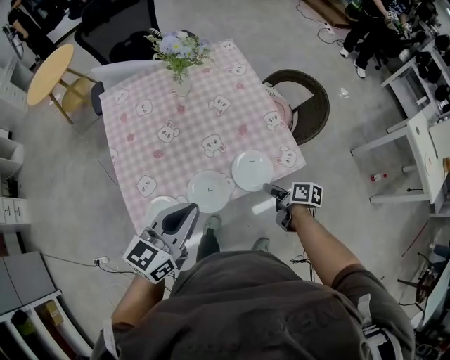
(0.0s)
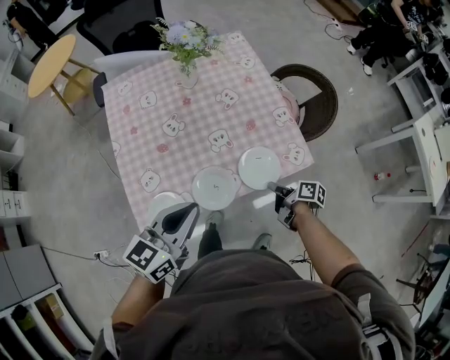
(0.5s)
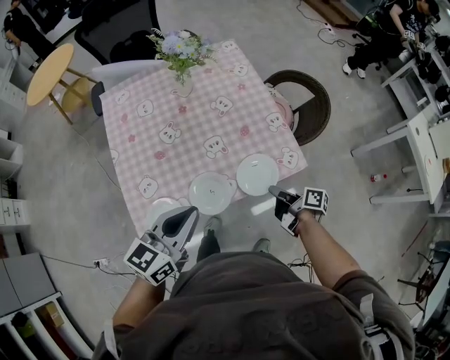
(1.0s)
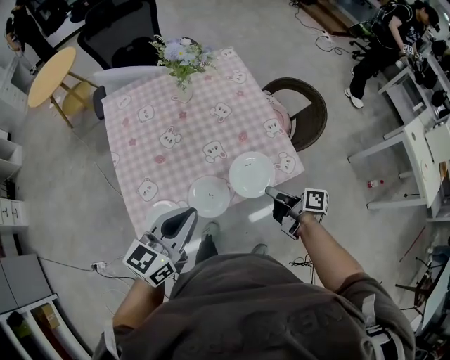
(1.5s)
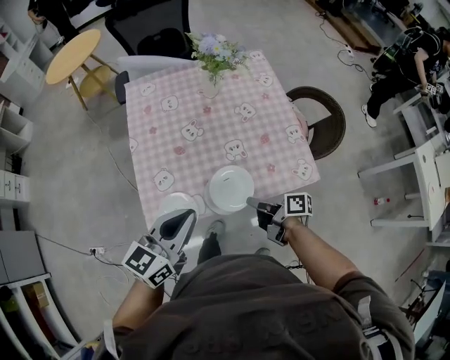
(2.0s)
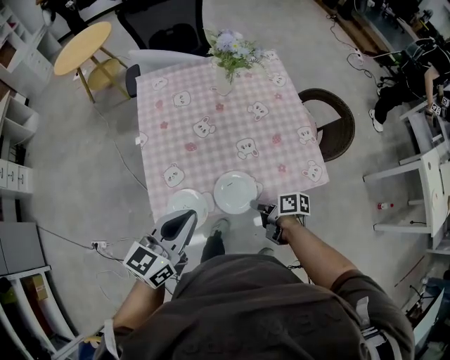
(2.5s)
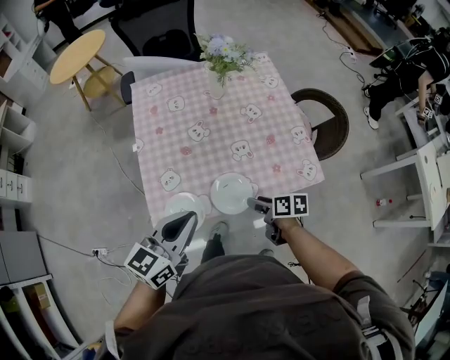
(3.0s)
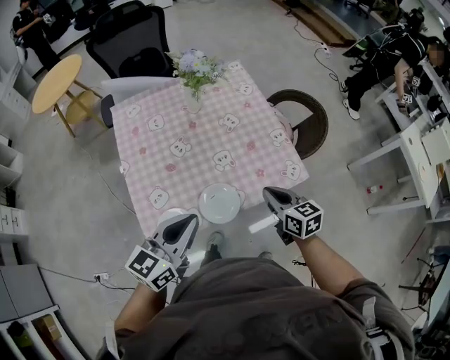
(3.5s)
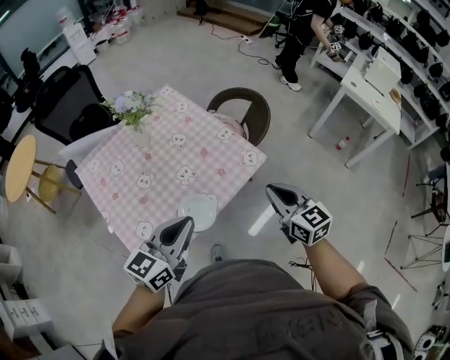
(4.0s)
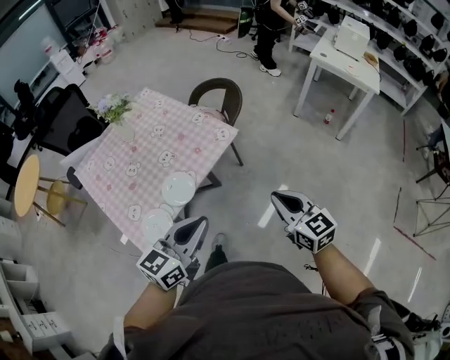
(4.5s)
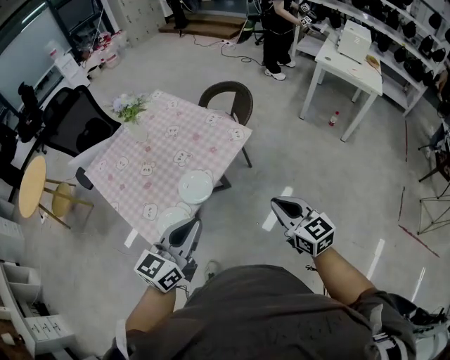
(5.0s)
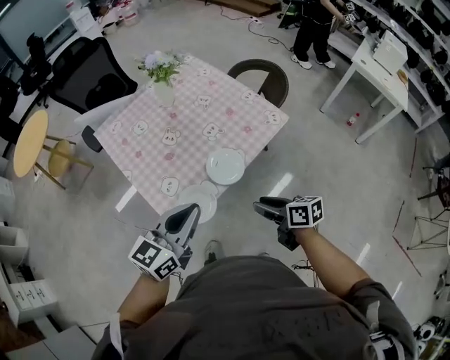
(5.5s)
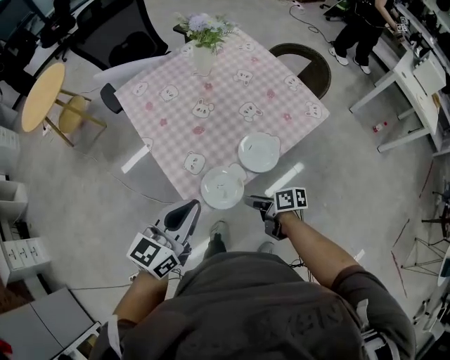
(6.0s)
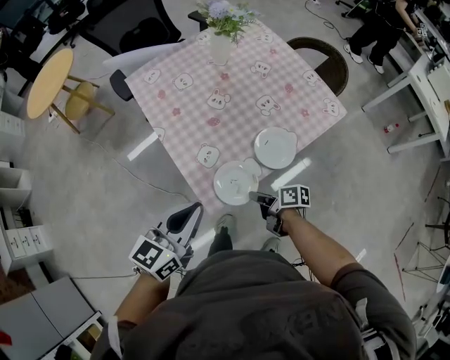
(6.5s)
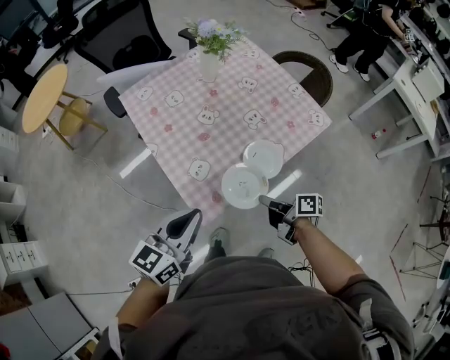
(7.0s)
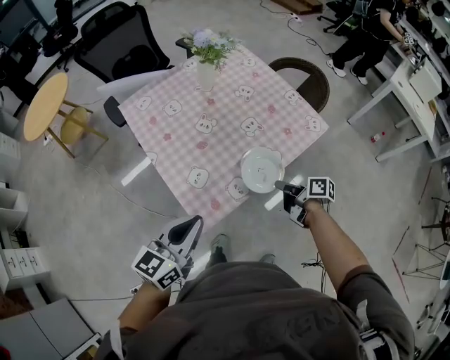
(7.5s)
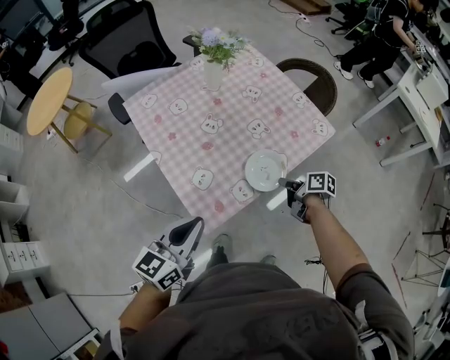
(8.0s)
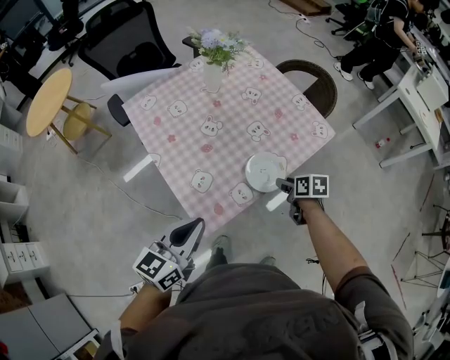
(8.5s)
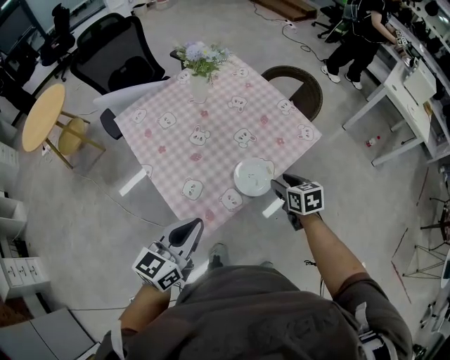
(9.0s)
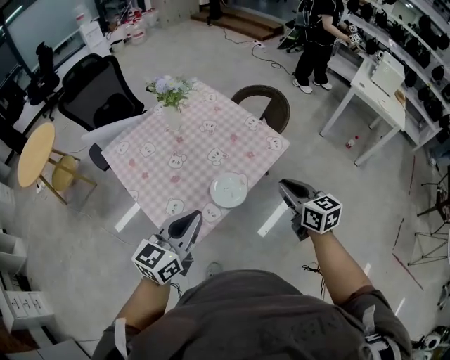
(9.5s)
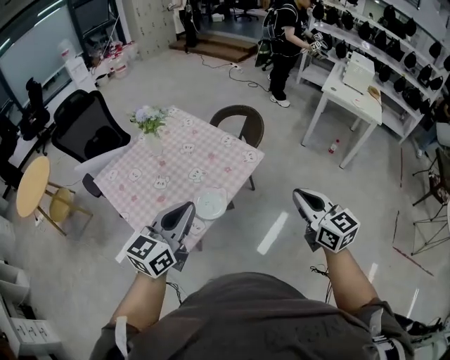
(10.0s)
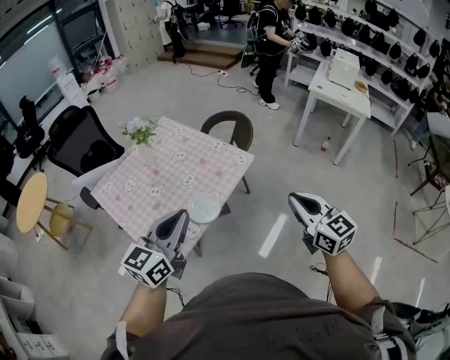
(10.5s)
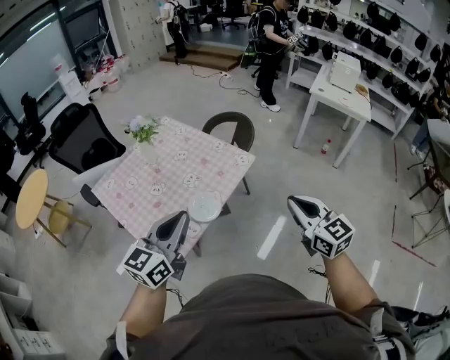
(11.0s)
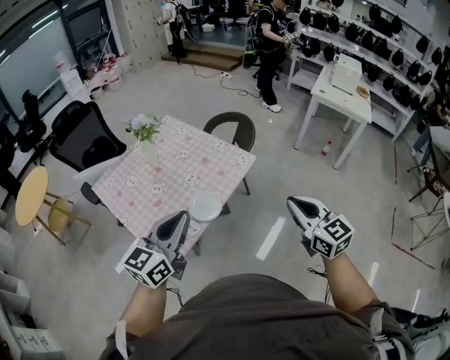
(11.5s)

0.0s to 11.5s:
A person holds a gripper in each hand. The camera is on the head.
0.0s to 2.0s: The left gripper moves to the left, roughly 5 cm, while the right gripper heads to the left and upward, covering about 15 cm, rotates roughly 30 degrees, and closes.
2.0s to 4.0s: The left gripper ends up approximately 5 cm from where it was, and turns by approximately 30 degrees; the right gripper moves upward, some 20 cm, swivels approximately 80 degrees, and opens, then closes once more.
4.0s to 6.0s: The right gripper ends up about 40 cm from where it was, rotates around the line of its fingers by about 50 degrees, clockwise from behind, and opens. The left gripper shifts by roughly 25 cm.
6.0s to 7.5s: The right gripper heads to the right and forward, covering approximately 15 cm, and closes up.
7.5s to 9.5s: The left gripper shifts roughly 10 cm to the right, upward and forward; the right gripper goes roughly 20 cm upward and to the right, rolls counterclockwise, seen from behind, by some 50 degrees, and opens, then closes again.
9.5s to 11.5s: The right gripper shifts about 20 cm backward, to the right and upward. Meanwhile the left gripper heads upward and to the right, covering some 10 cm.

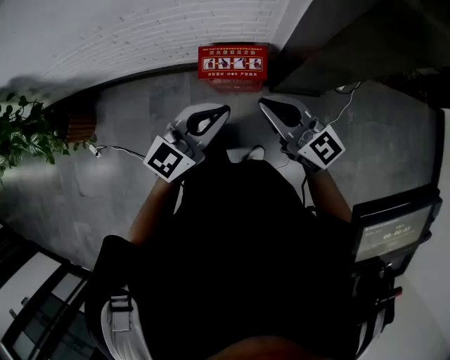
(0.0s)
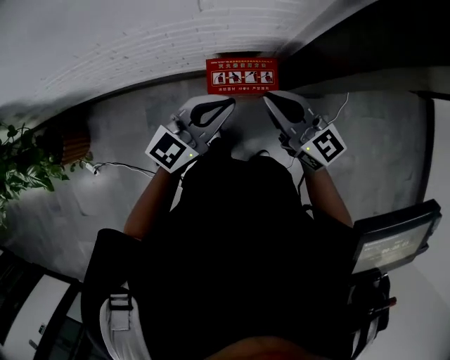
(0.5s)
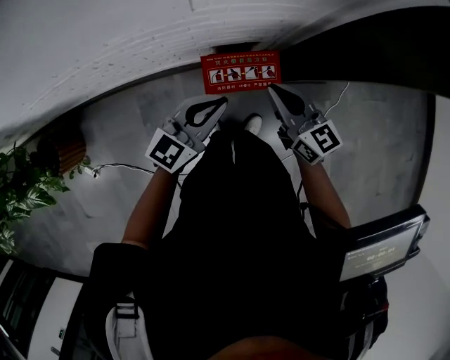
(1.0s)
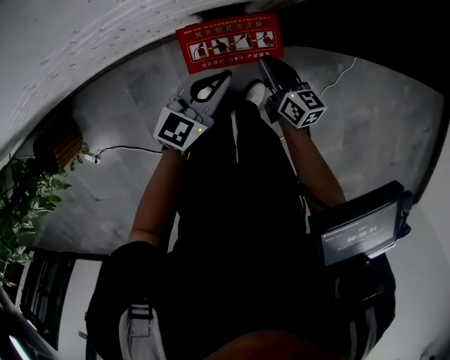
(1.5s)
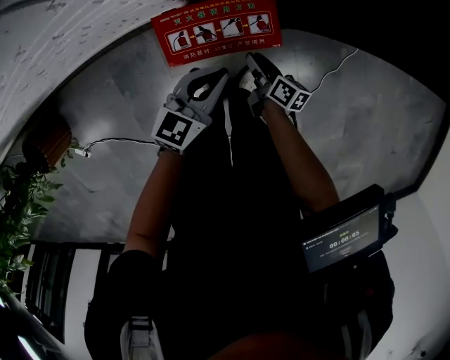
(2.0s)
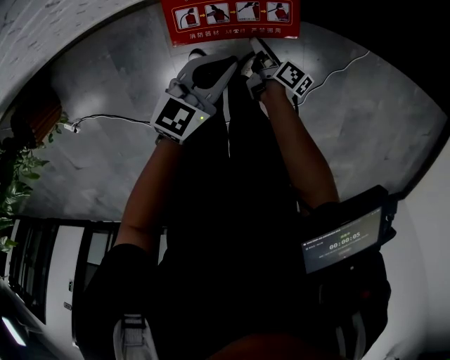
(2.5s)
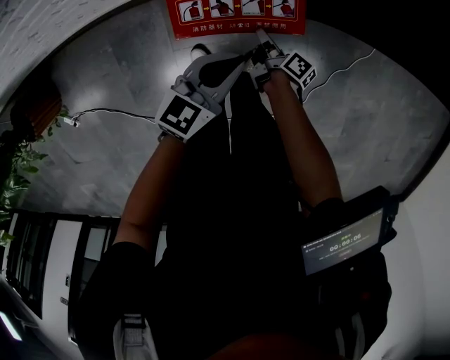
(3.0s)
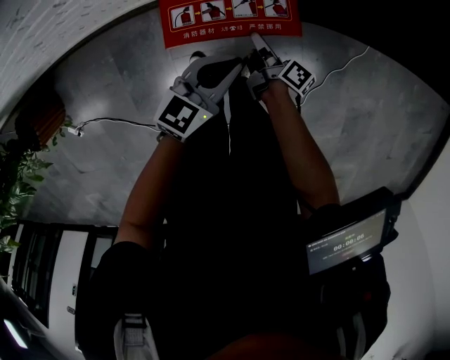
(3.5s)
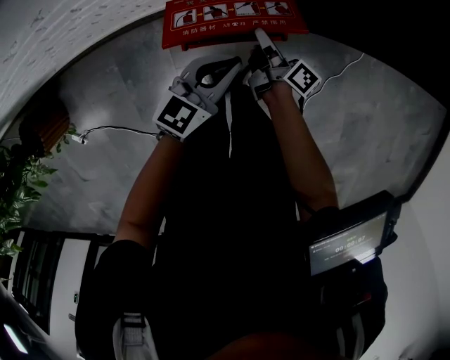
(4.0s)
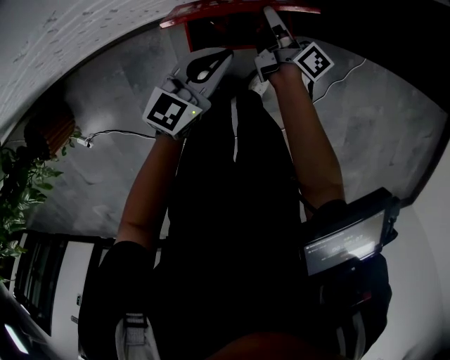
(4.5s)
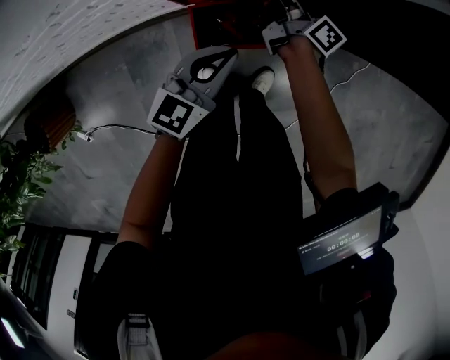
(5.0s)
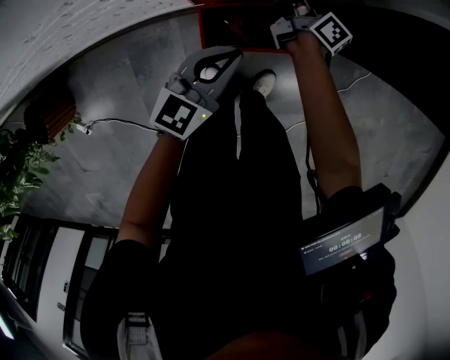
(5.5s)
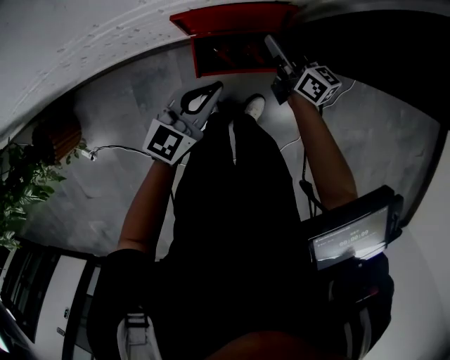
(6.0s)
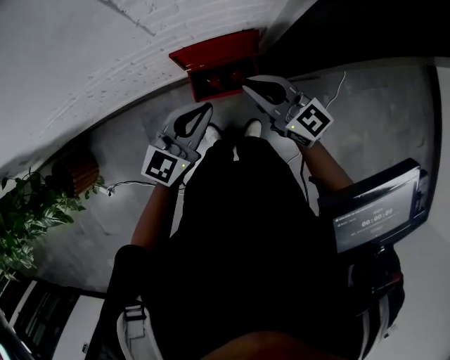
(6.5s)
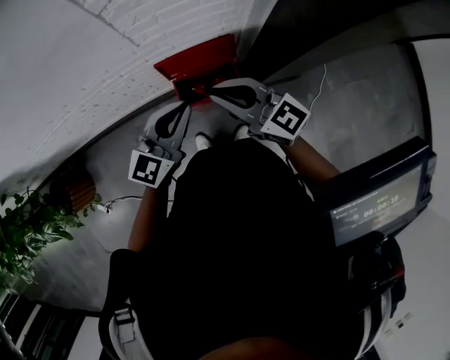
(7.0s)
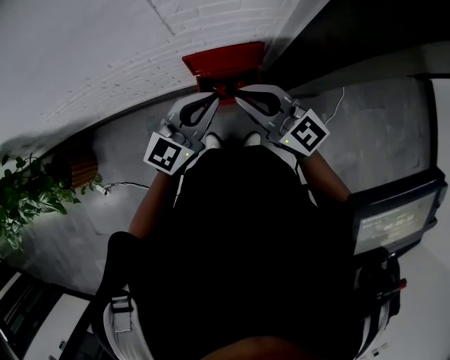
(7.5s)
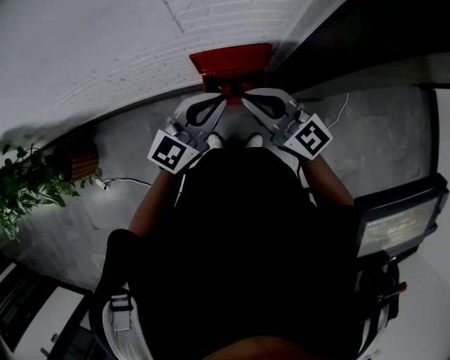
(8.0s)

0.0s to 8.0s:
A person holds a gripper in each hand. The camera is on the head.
0.0s to 2.0s: The left gripper goes roughly 40 cm downward and forward, and turns by about 20 degrees. Meanwhile the right gripper shifts about 50 cm downward, rolls clockwise, seen from behind, by roughly 60 degrees, and opens its fingers.
2.0s to 4.0s: The right gripper is displaced upward and forward by roughly 10 cm, and rotates some 20 degrees.
4.0s to 6.0s: The two grippers go about 15 cm upward. The right gripper changes its angle by roughly 40 degrees.
6.0s to 8.0s: The left gripper travels upward by roughly 20 cm; the right gripper goes roughly 35 cm upward and backward, and twists about 40 degrees counterclockwise, seen from behind.

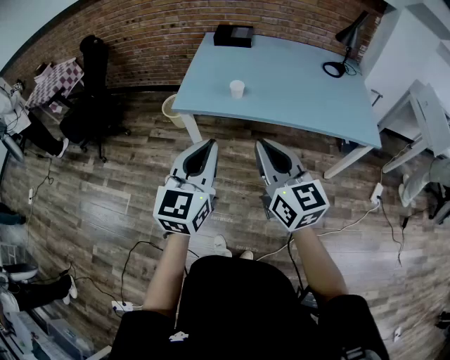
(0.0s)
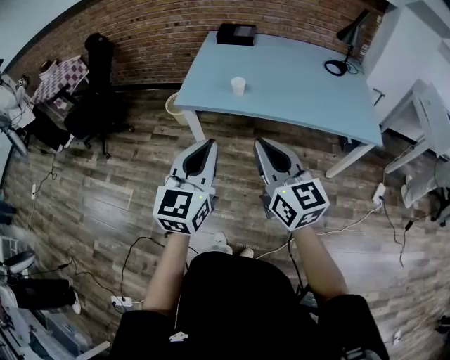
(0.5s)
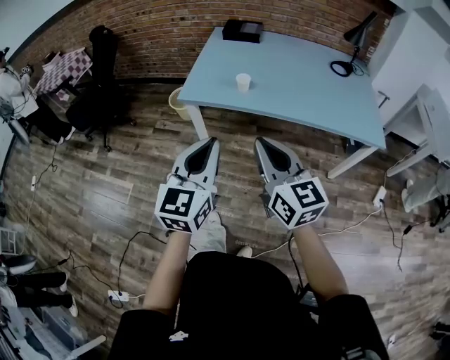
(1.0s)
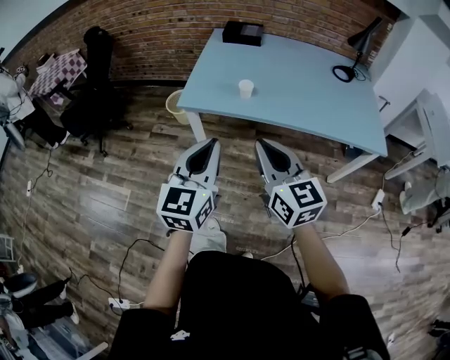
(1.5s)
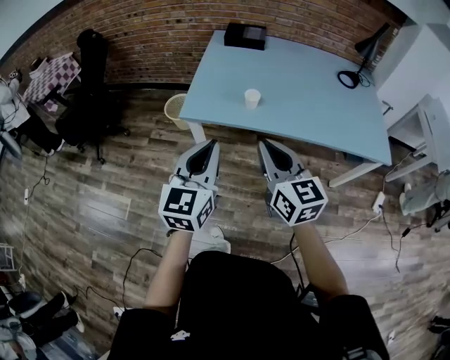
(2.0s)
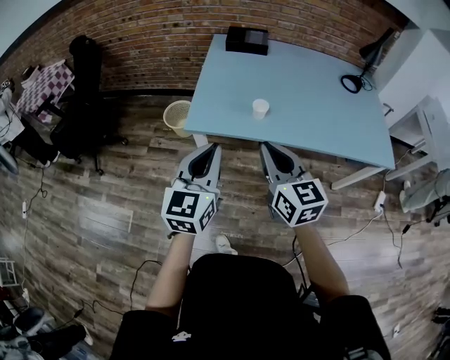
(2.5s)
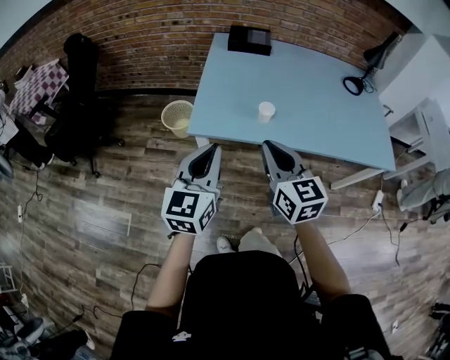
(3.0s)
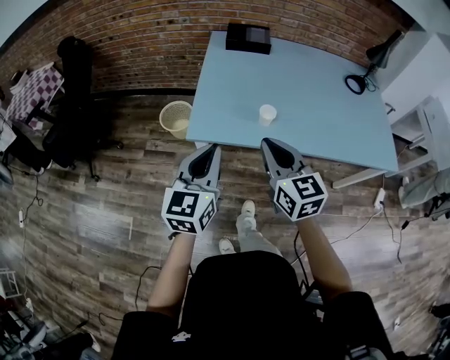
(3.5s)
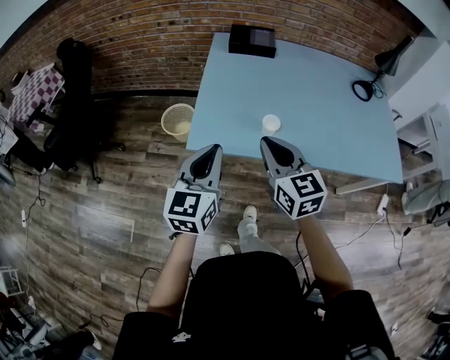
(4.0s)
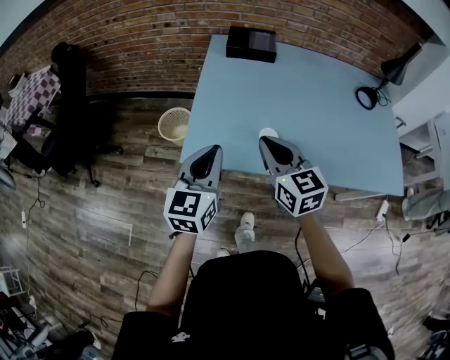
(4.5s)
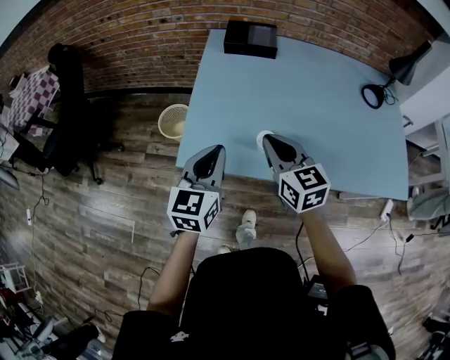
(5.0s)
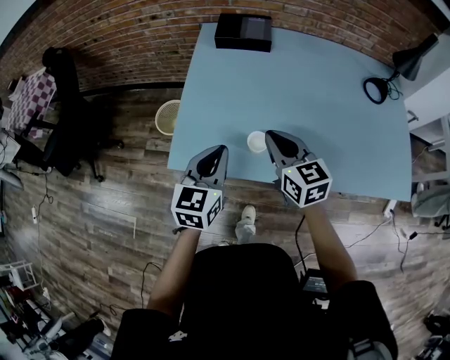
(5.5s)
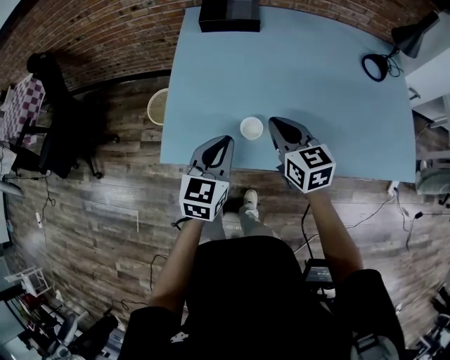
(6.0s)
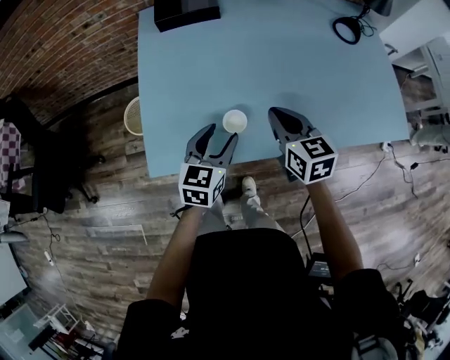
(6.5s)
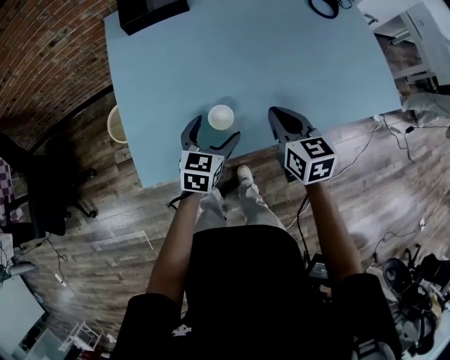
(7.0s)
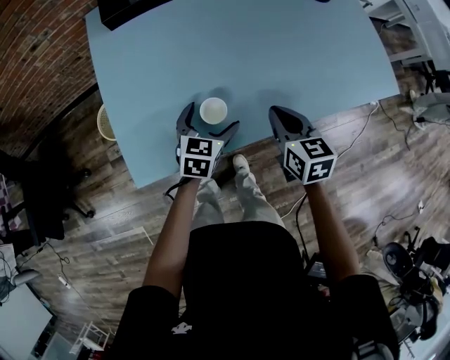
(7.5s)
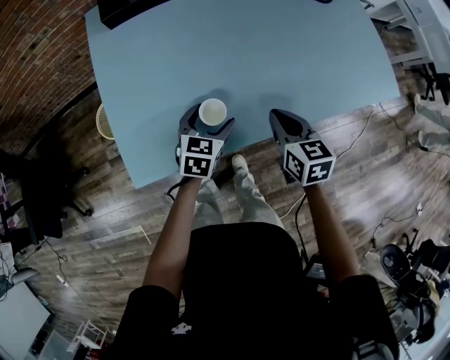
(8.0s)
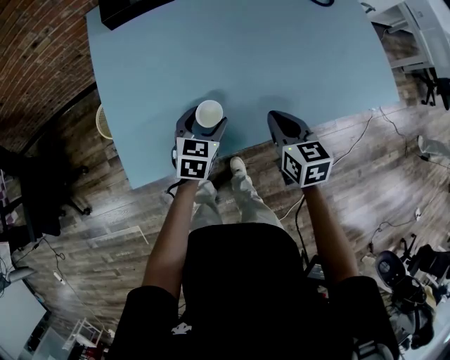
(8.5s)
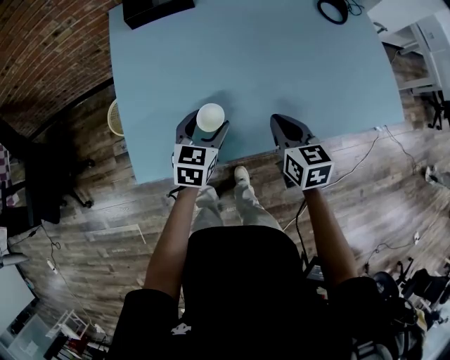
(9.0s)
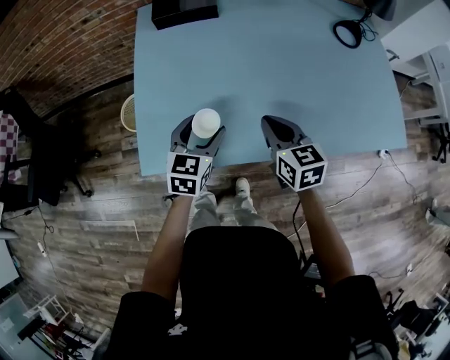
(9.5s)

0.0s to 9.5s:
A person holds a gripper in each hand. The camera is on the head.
0.0s to 2.0s: The grippers both shift forward and to the left by approximately 15 cm.
2.0s to 4.0s: Both grippers move forward, some 20 cm.
4.0s to 5.5s: Both grippers move forward, to the right and downward, roughly 20 cm.
5.5s to 7.5s: The right gripper ends up some 15 cm from where it was, and rotates about 40 degrees. Meanwhile the left gripper heads downward, covering approximately 20 cm, turns by approximately 30 degrees, and opens.
7.5s to 9.5s: The left gripper shifts about 10 cm upward and to the left, and closes its fingers. The right gripper shifts by some 5 cm.
